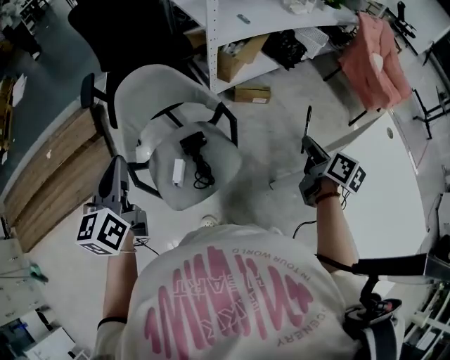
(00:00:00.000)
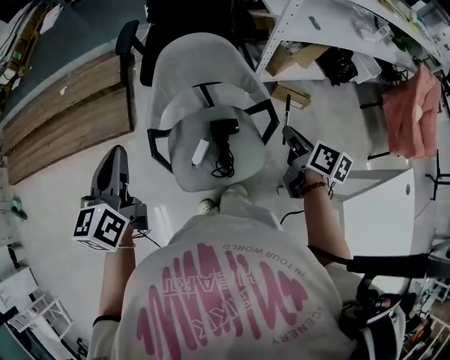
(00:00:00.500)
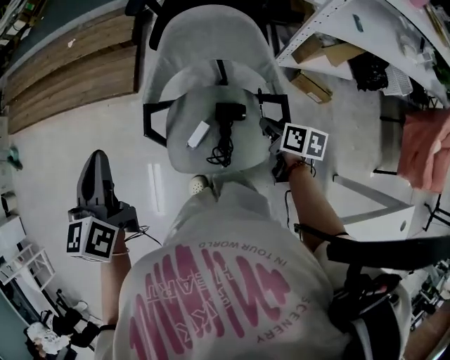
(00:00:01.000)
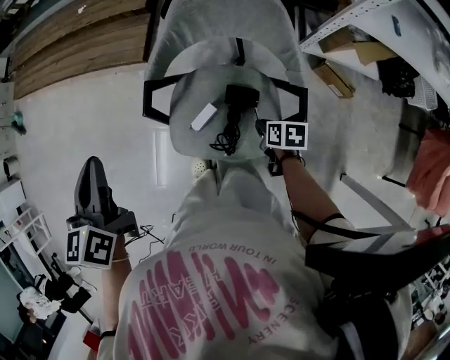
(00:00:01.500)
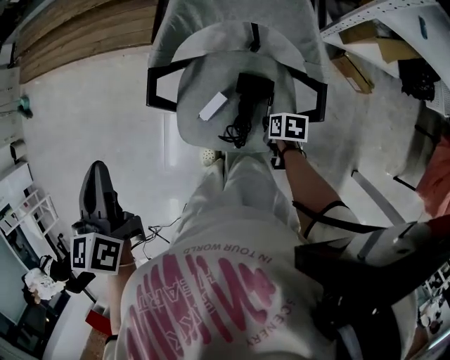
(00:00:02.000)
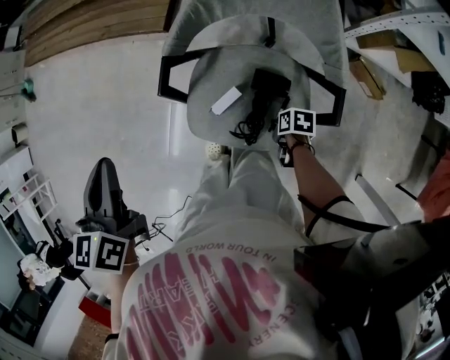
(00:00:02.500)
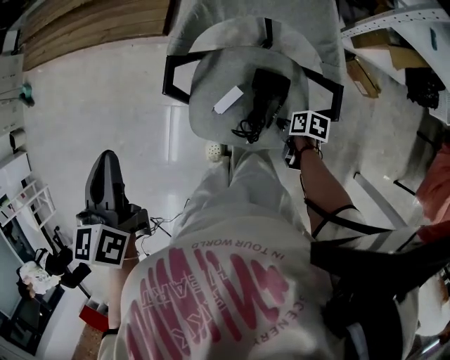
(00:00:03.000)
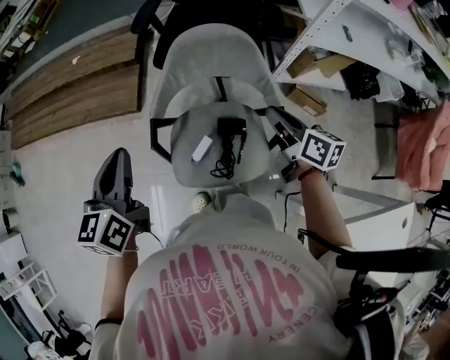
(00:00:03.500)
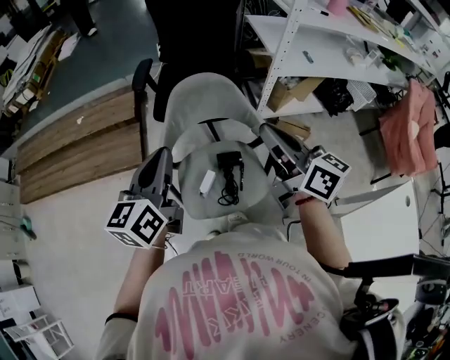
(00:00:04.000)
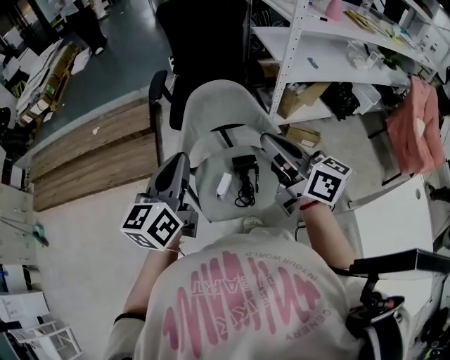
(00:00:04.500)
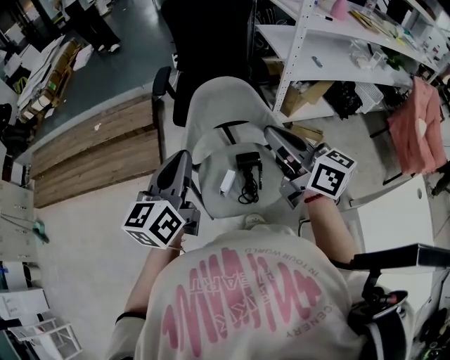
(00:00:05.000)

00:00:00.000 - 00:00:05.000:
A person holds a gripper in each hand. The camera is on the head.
00:00:00.000 - 00:00:02.500: The left gripper moves some 15 cm, and rotates roughly 50 degrees. The right gripper shifts approximately 35 cm downward, and tips its fingers downward by some 40 degrees.
00:00:02.500 - 00:00:05.000: The right gripper is displaced upward by about 50 cm, and tips its fingers upward by some 70 degrees. Meanwhile the left gripper moves upward, about 10 cm, and tilts its fingers approximately 40 degrees upward.

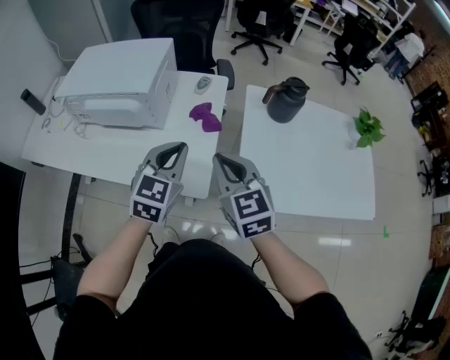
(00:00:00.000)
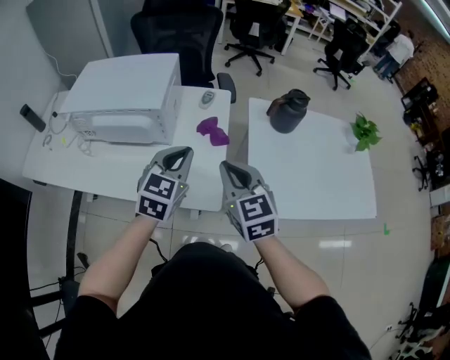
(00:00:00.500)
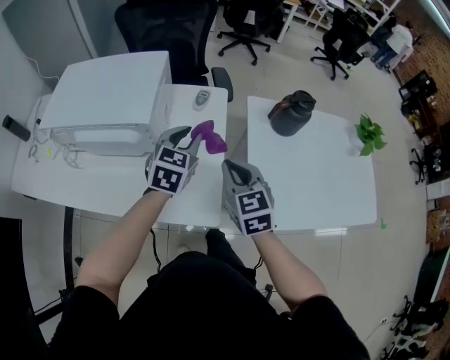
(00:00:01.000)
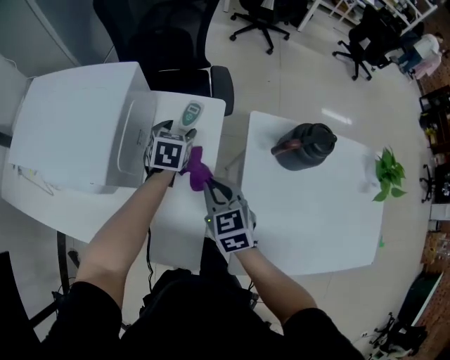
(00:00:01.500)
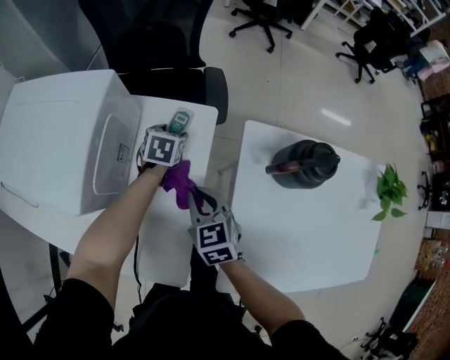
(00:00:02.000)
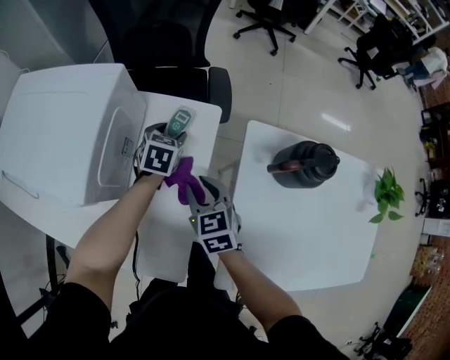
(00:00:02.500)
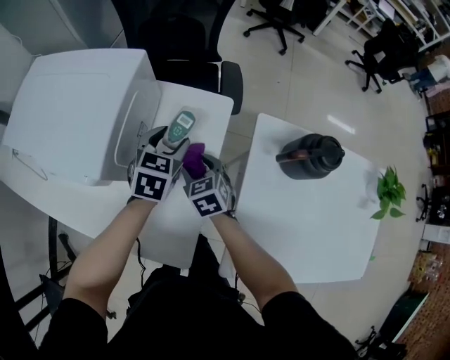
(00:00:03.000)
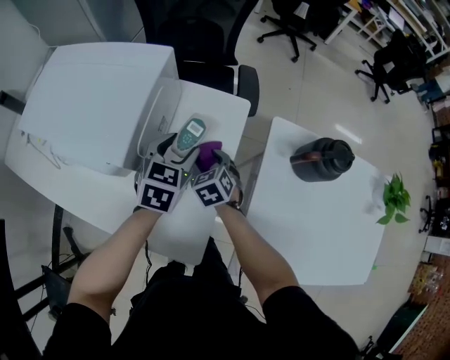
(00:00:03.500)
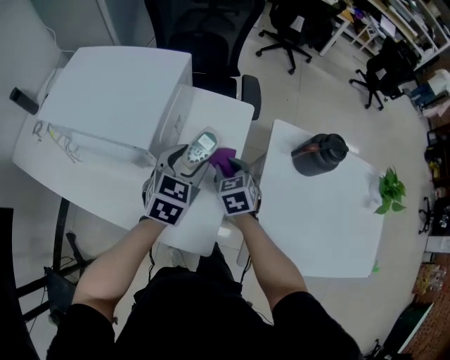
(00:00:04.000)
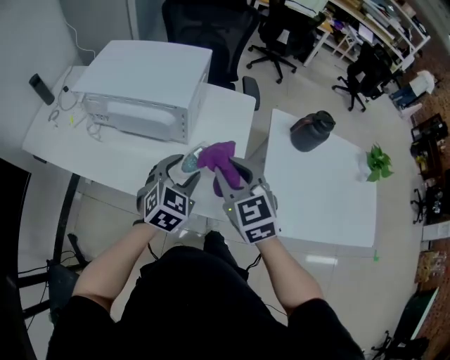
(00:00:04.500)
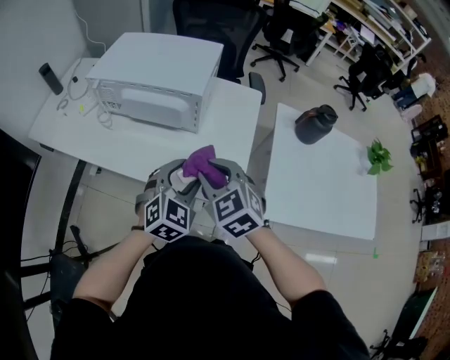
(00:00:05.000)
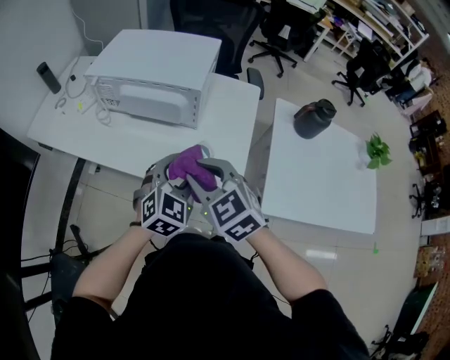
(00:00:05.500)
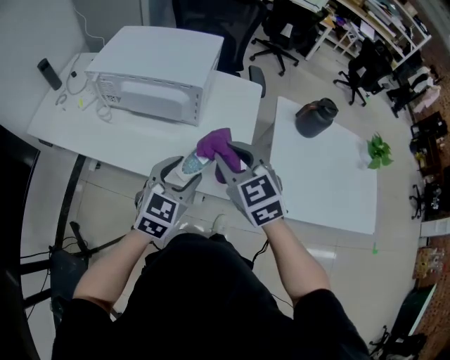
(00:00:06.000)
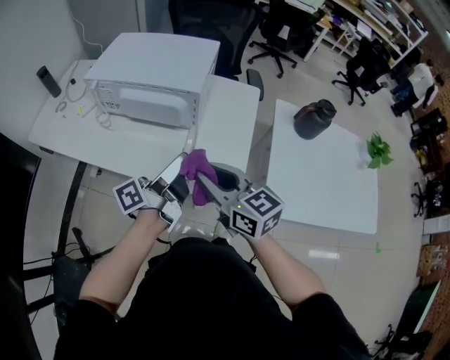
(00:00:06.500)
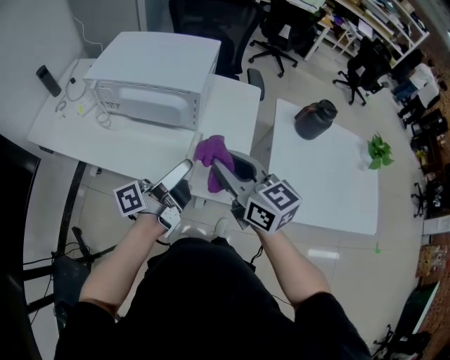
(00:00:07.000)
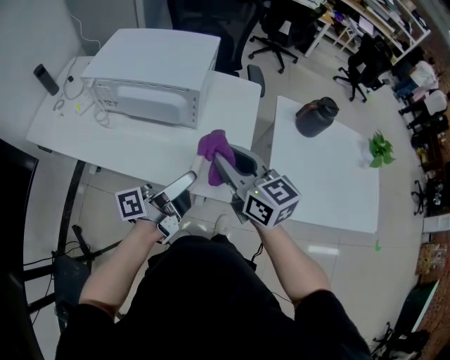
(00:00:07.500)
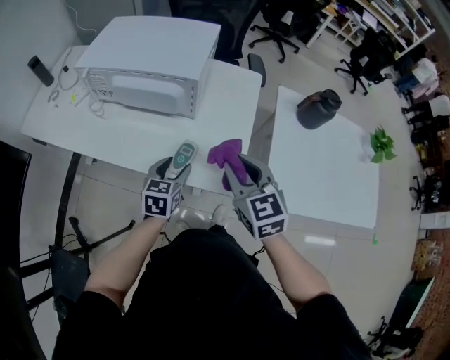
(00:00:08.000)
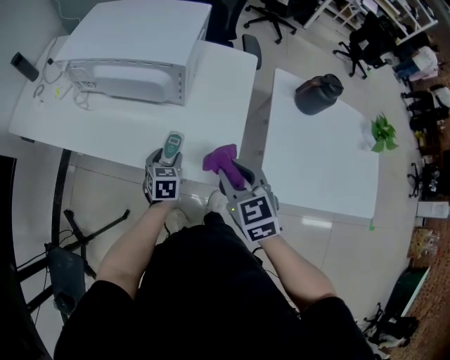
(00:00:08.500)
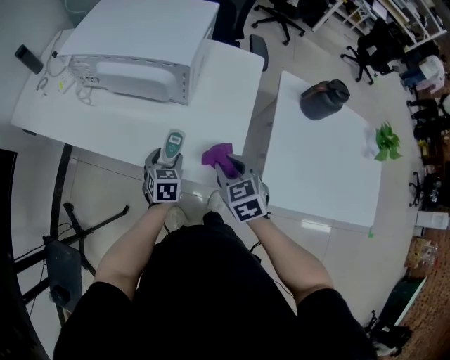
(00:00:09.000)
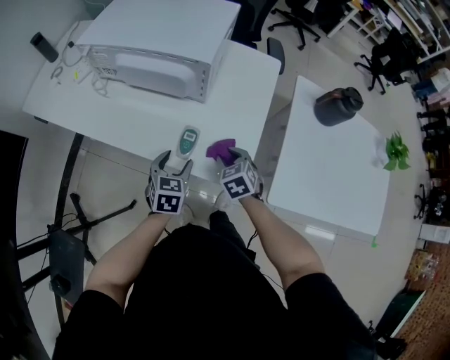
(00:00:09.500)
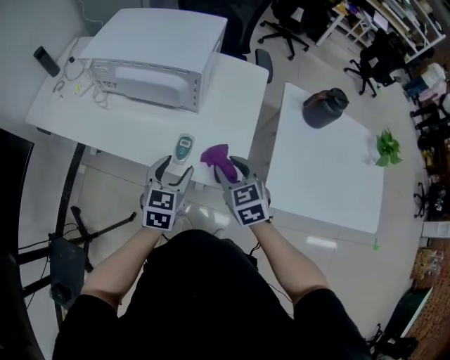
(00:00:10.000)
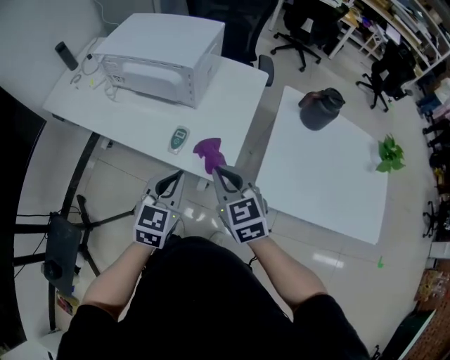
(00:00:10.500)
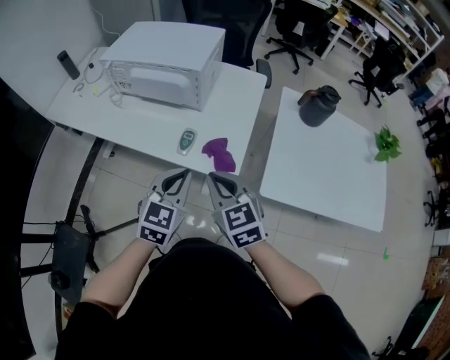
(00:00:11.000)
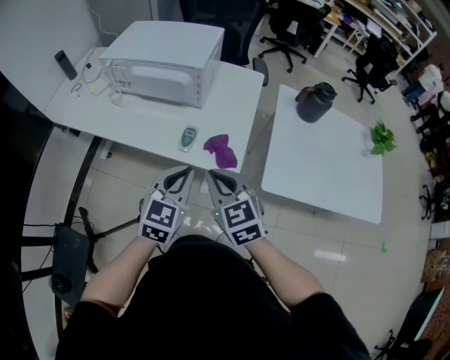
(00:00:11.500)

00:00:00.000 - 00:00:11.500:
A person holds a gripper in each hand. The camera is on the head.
00:00:00.000 - 00:00:02.000: Both grippers travel together forward and downward, some 40 cm. The left gripper tips its fingers downward by about 30 degrees, and opens its fingers.
00:00:02.000 - 00:00:04.000: The left gripper travels backward and upward by some 25 cm, and changes its angle by some 20 degrees; the right gripper goes downward and returns, about 5 cm each way, and opens, then closes again.
00:00:04.000 - 00:00:06.000: The right gripper travels backward, upward and to the left by approximately 35 cm, and swivels some 20 degrees. The left gripper shifts about 30 cm backward and to the left.
00:00:06.000 - 00:00:07.500: The left gripper rotates around the line of its fingers by some 80 degrees, counterclockwise from behind. The right gripper turns by some 30 degrees.
00:00:07.500 - 00:00:09.500: Both grippers move downward, some 25 cm. The left gripper tips its fingers downward by roughly 60 degrees; the right gripper points its fingers about 40 degrees further downward.
00:00:09.500 - 00:00:11.500: Both grippers travel together upward and backward, some 25 cm. The right gripper rotates about 30 degrees, and closes up, while the left gripper swivels some 30 degrees, and closes its fingers.

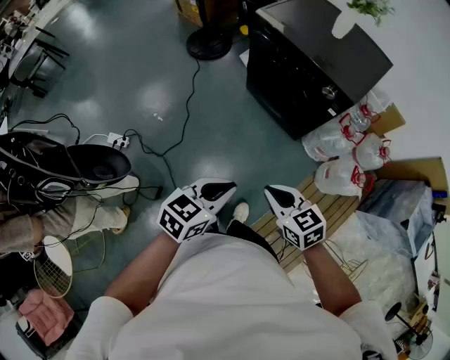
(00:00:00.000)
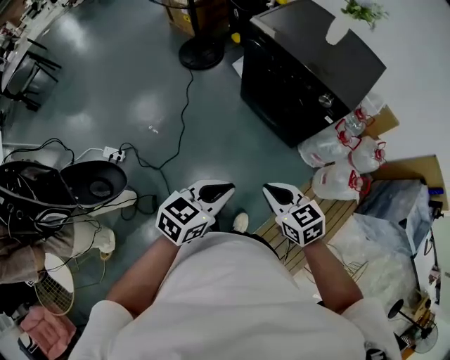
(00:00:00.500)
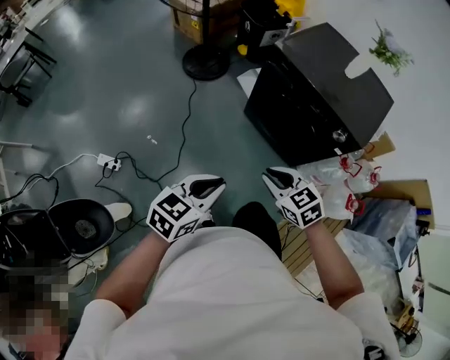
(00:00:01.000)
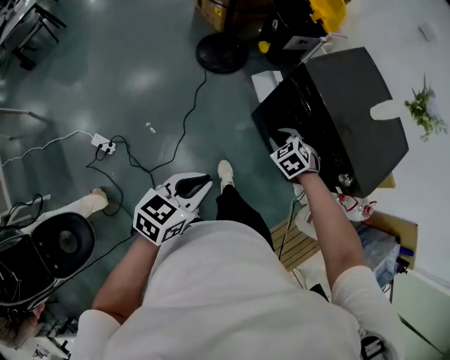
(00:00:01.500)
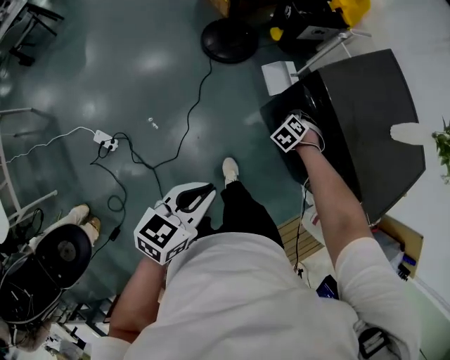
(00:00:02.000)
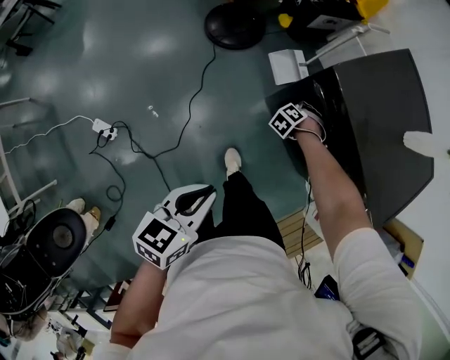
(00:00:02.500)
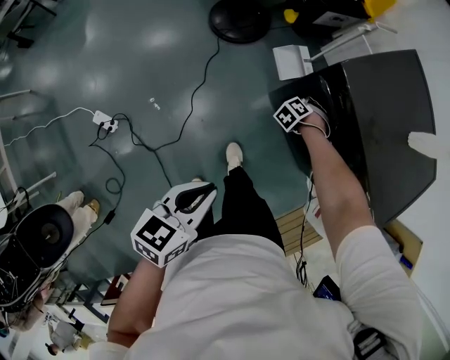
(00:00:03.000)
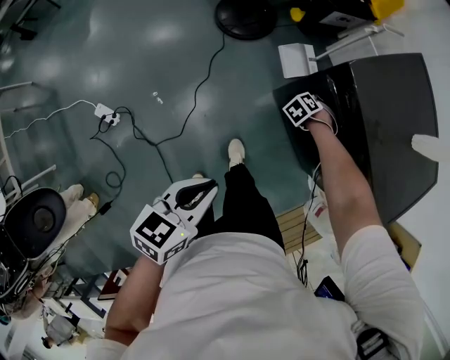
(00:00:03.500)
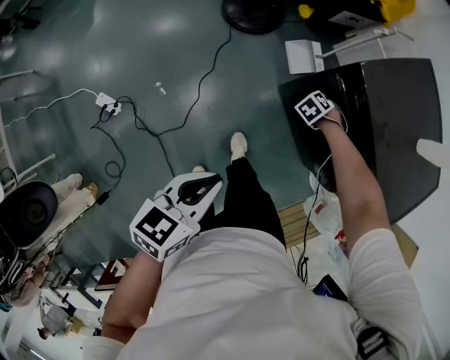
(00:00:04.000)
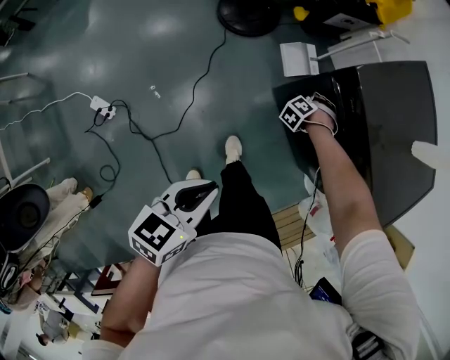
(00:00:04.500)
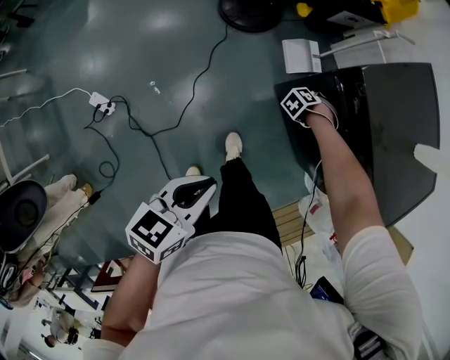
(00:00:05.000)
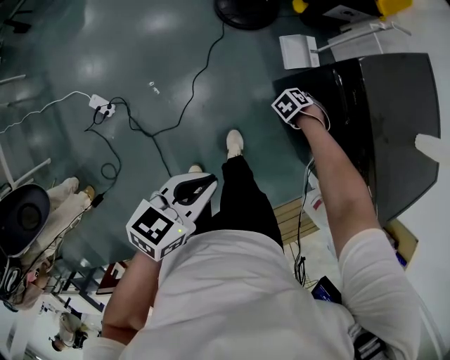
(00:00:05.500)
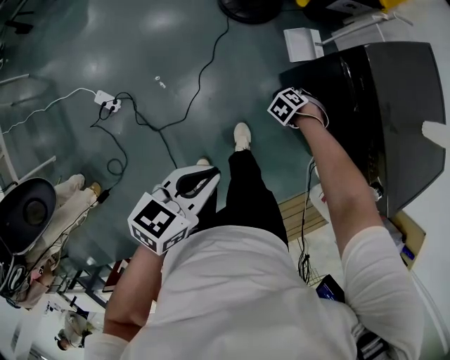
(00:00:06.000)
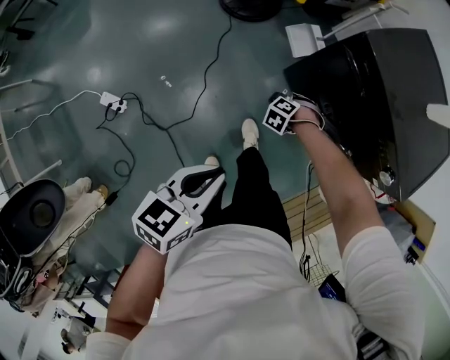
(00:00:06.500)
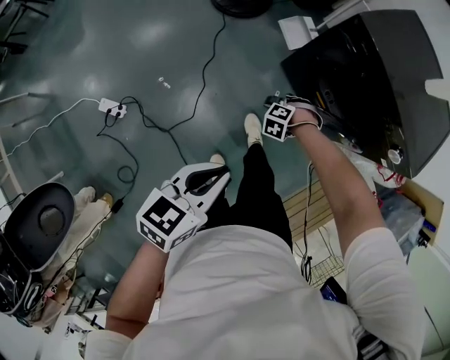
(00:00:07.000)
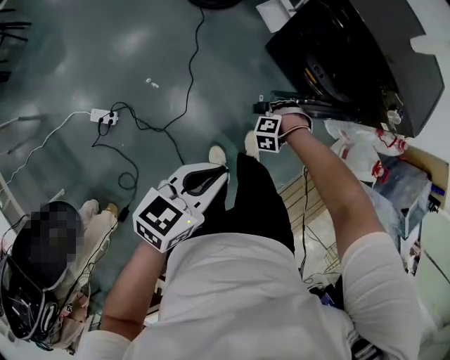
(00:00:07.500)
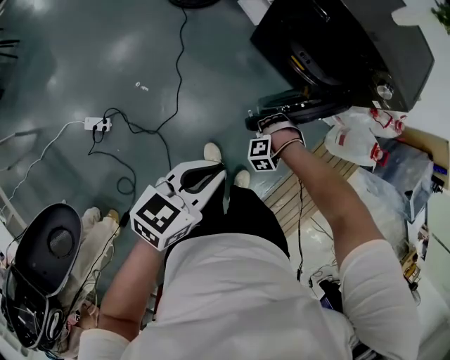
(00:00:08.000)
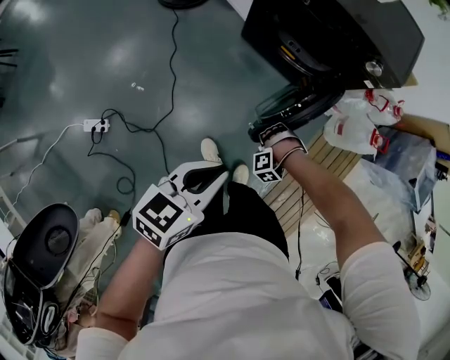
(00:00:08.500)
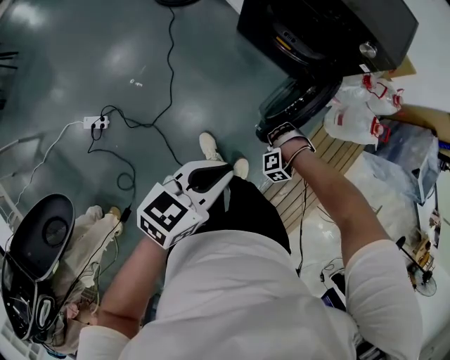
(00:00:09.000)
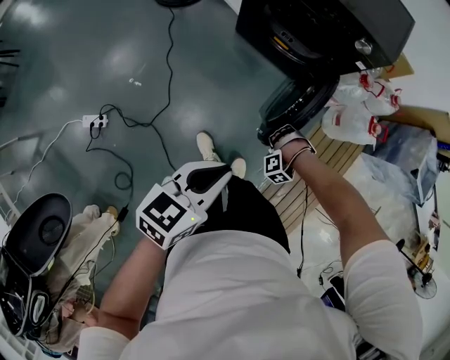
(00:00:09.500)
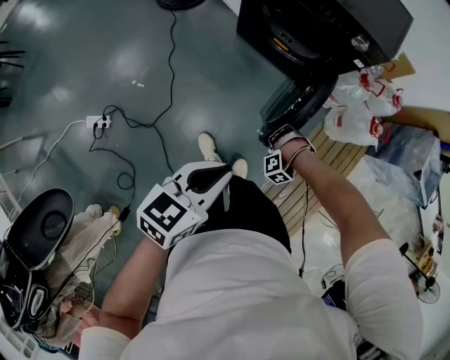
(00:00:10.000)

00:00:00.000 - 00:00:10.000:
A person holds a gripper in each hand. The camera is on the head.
00:00:00.000 - 00:00:02.000: The left gripper ends up about 40 cm from where it was, and rotates roughly 20 degrees.
00:00:06.000 - 00:00:08.000: The left gripper moves about 15 cm, and swivels about 20 degrees.
00:00:08.000 - 00:00:10.000: The left gripper ends up some 15 cm from where it was.
